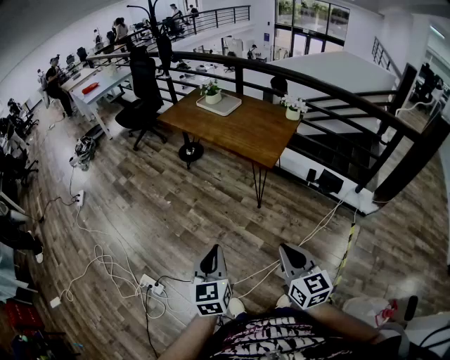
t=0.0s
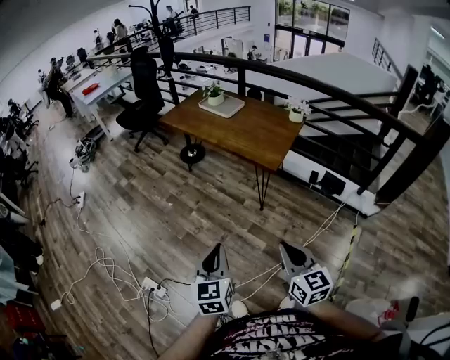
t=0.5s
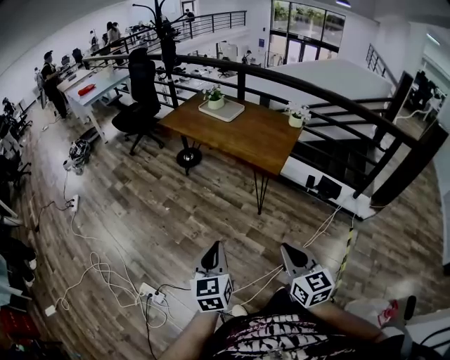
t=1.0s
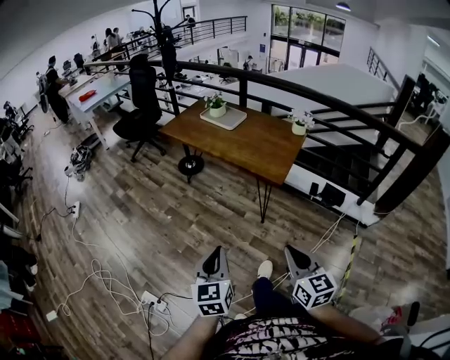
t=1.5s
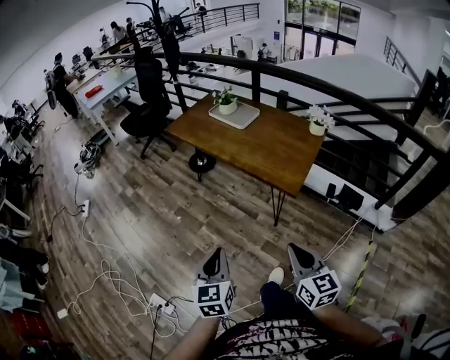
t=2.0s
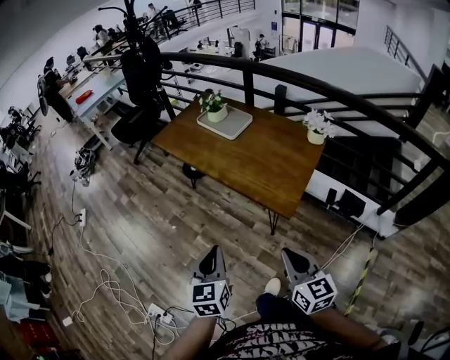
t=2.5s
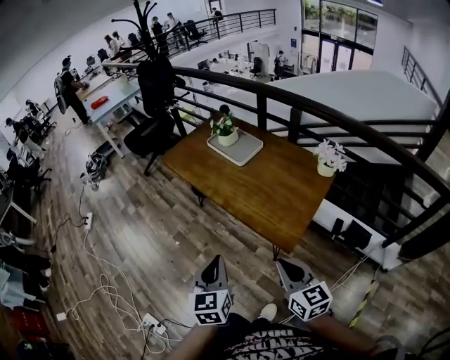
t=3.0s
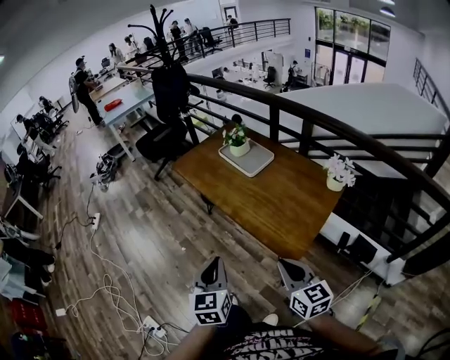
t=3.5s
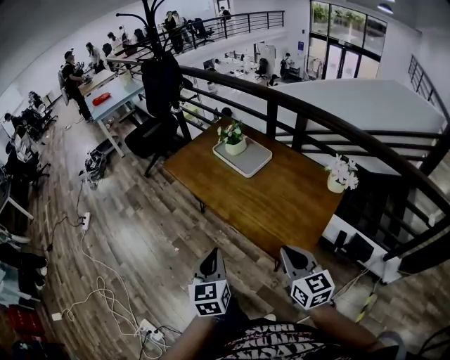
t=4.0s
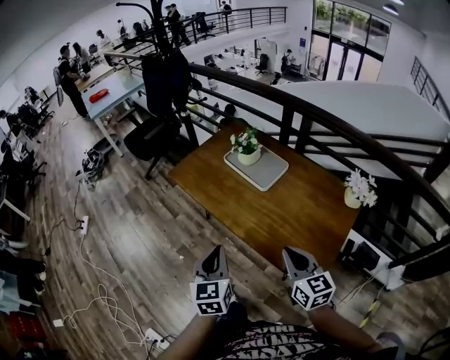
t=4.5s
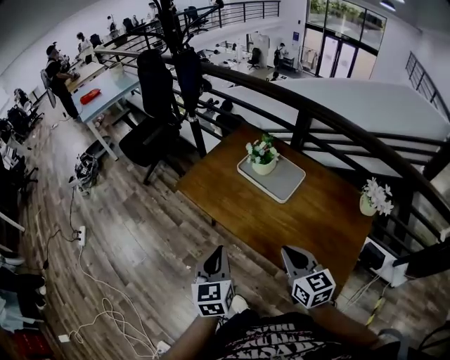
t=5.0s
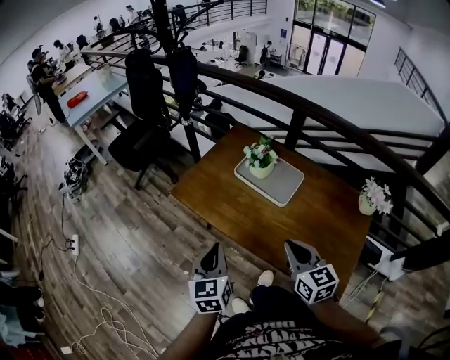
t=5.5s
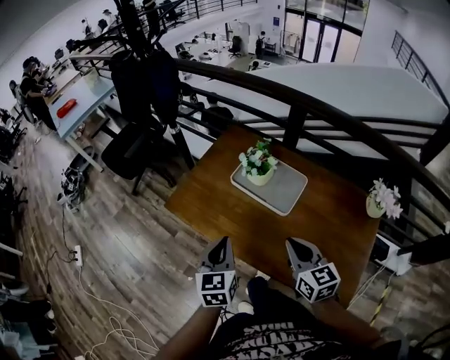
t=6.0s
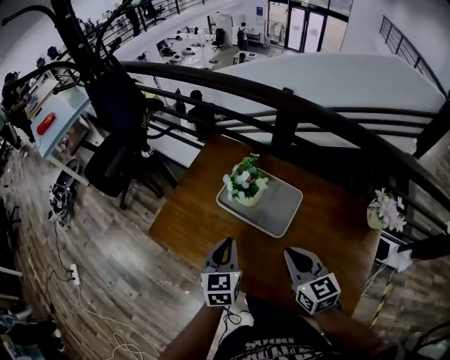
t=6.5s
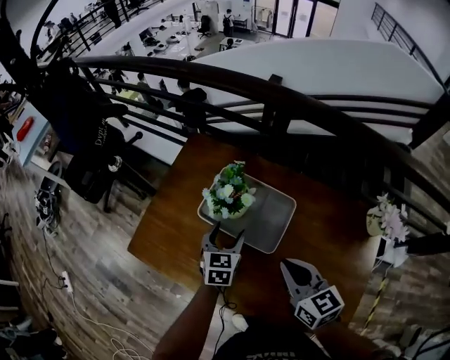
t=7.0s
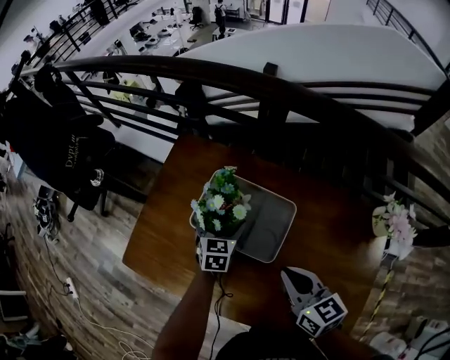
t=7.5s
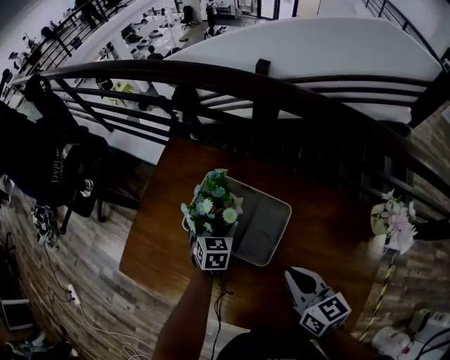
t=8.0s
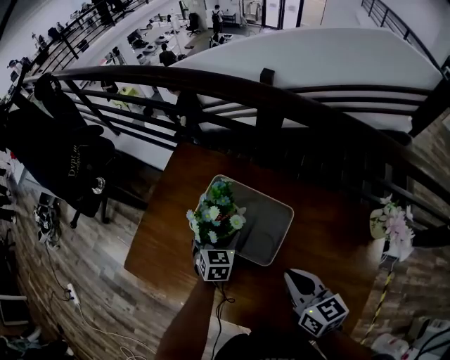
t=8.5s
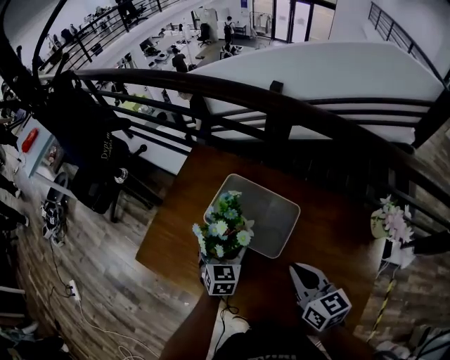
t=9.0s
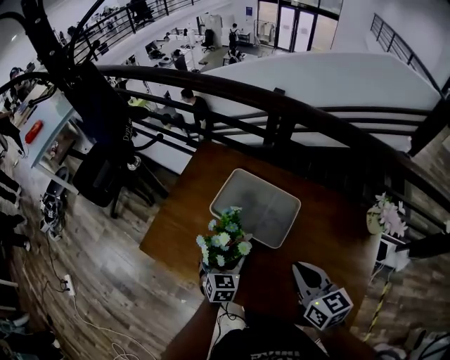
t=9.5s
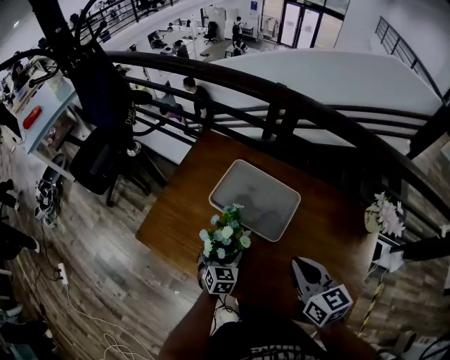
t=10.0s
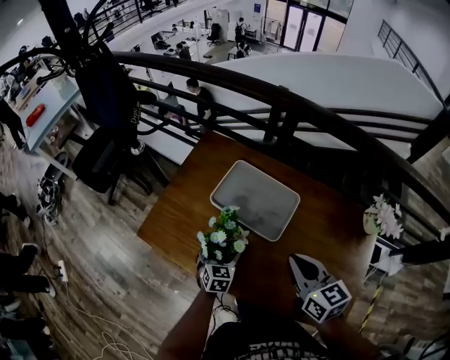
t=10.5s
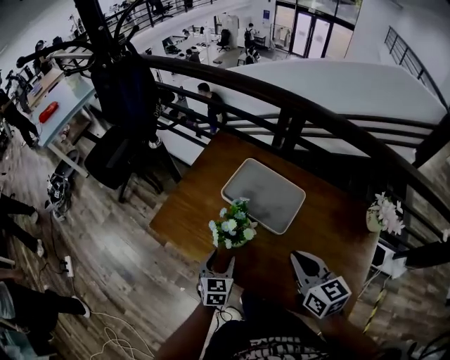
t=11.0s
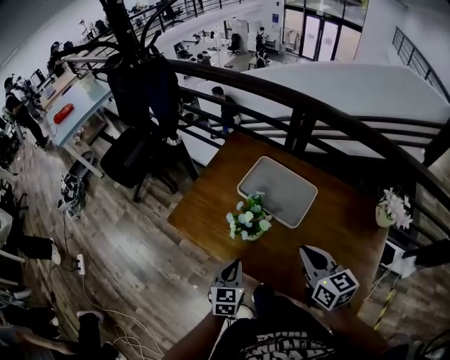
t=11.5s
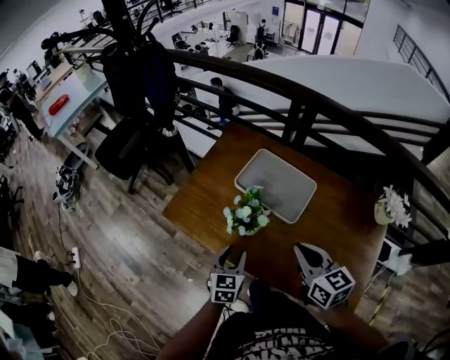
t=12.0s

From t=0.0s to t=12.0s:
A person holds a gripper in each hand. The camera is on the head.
From t=0.0s to t=2.0s: Both grippers move forward, approximately 20 cm.
From t=2.0s to t=4.0s: The grippers both shift forward by approximately 35 cm.
From t=4.0s to t=6.0s: The right gripper heads forward and to the left, covering about 40 cm; the left gripper is displaced forward by about 40 cm.
From t=6.0s to t=8.0s: The left gripper is displaced forward and downward by roughly 40 cm, changes its angle by about 30 degrees, and opens its fingers; the right gripper heads forward, to the right and downward, covering approximately 20 cm.
From t=8.0s to t=10.0s: The left gripper goes roughly 20 cm backward and to the left. Meanwhile the right gripper shifts some 10 cm backward, upward and to the left.
From t=10.0s to t=12.0s: The left gripper moves backward and upward, about 15 cm, and closes its fingers. The right gripper shifts some 5 cm to the left.

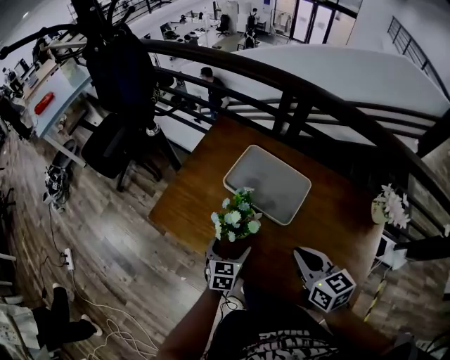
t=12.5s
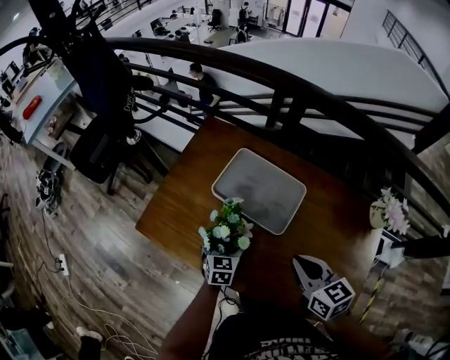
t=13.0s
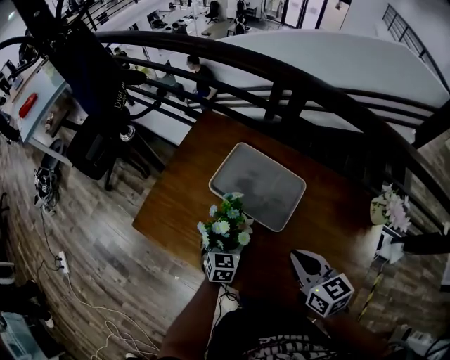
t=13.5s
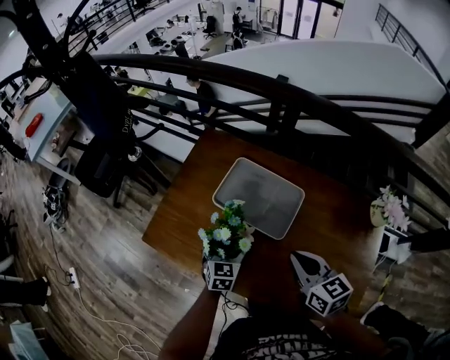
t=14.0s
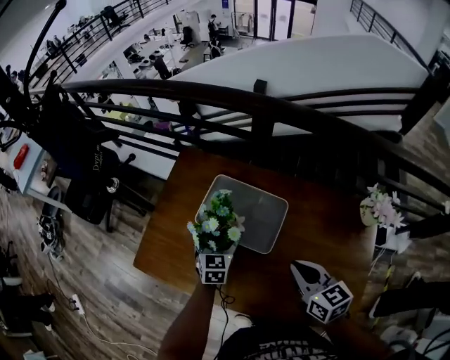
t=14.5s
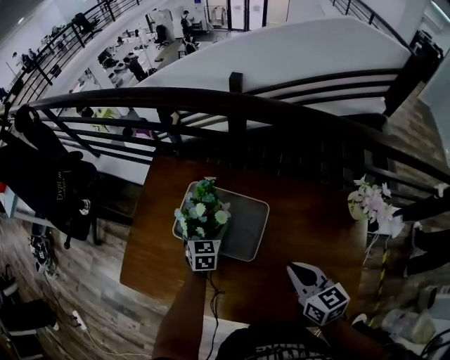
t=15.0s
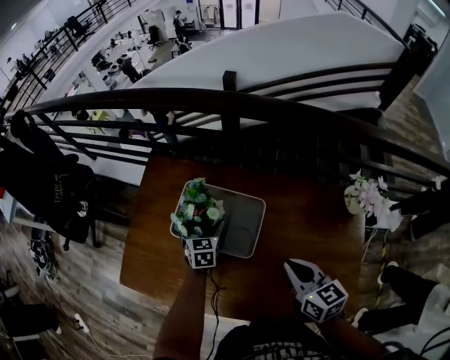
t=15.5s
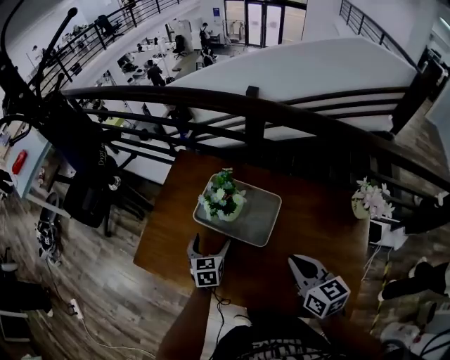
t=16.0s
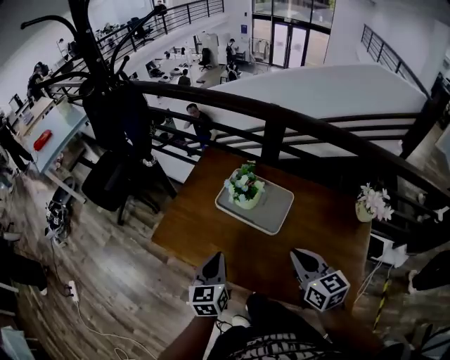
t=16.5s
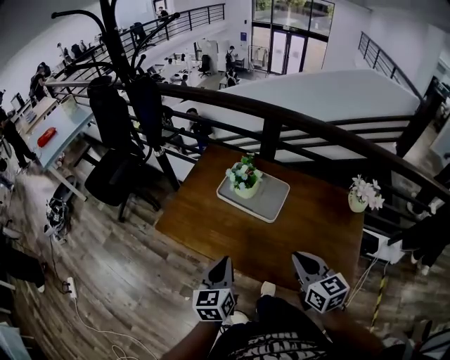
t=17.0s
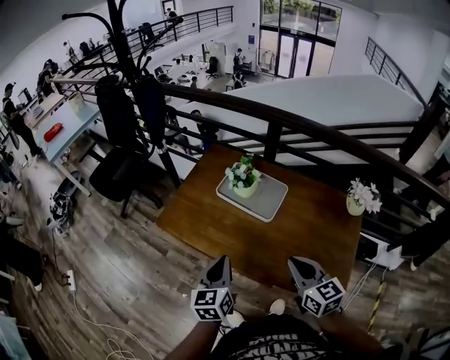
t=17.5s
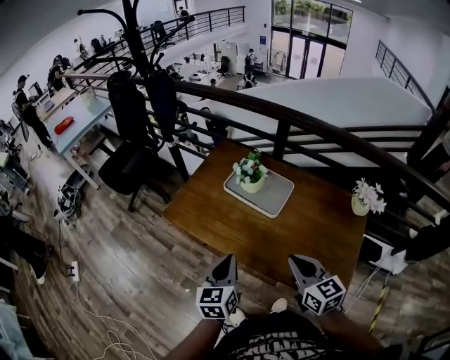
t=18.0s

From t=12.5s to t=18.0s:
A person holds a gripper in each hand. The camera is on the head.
From t=12.5s to t=14.5s: The right gripper goes about 10 cm to the right and forward, while the left gripper goes about 15 cm forward.
From t=14.5s to t=16.0s: The left gripper goes forward and returns, some 10 cm each way.
From t=16.0s to t=18.0s: The left gripper moves backward and upward, about 35 cm, swivels approximately 20 degrees, and closes, while the right gripper goes about 20 cm backward.

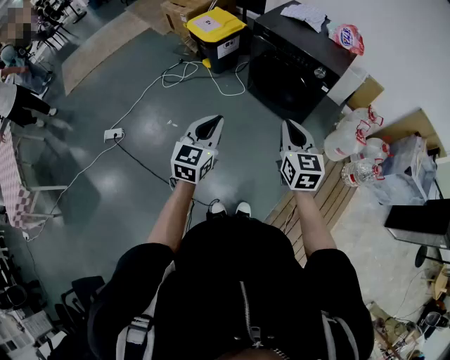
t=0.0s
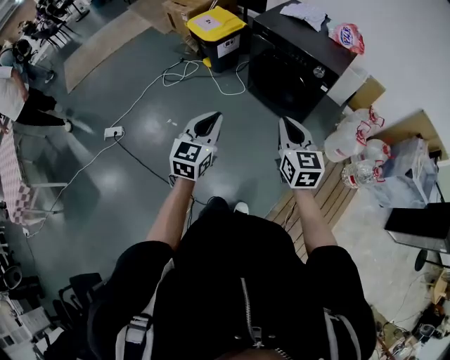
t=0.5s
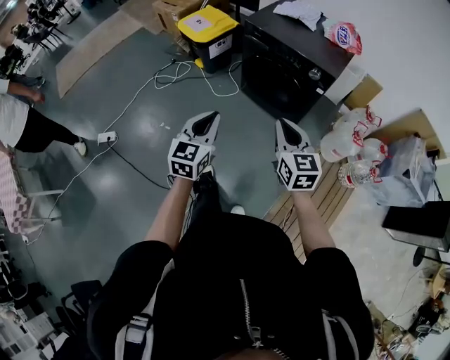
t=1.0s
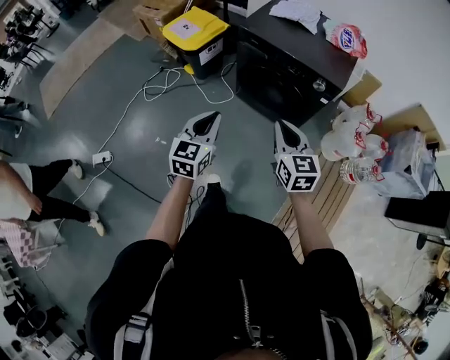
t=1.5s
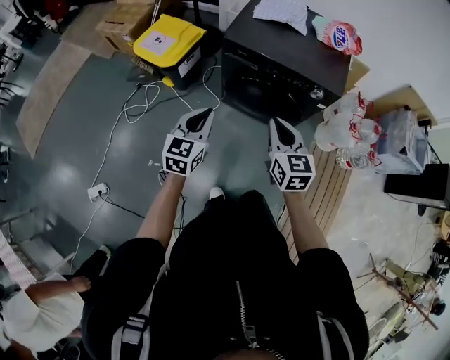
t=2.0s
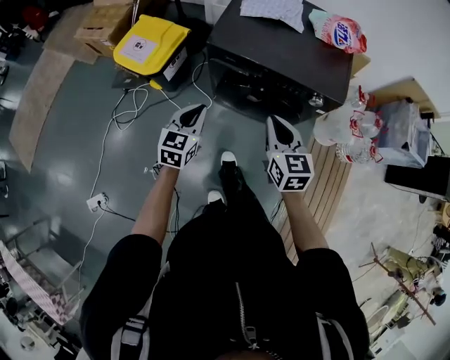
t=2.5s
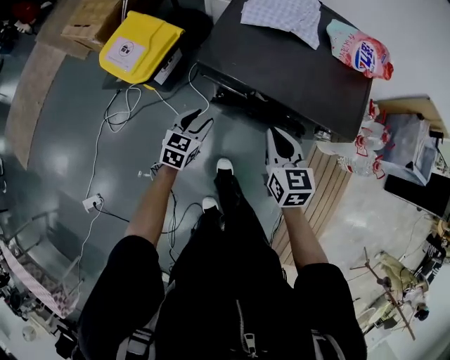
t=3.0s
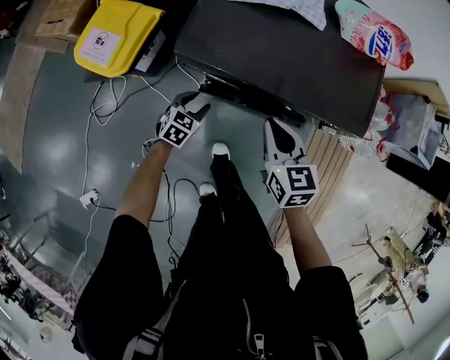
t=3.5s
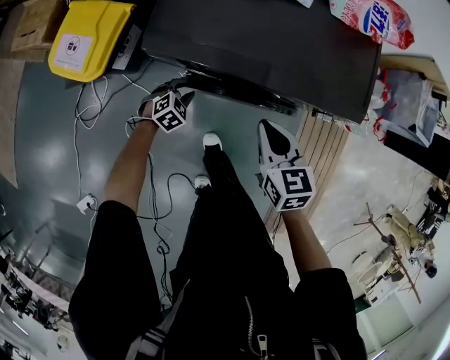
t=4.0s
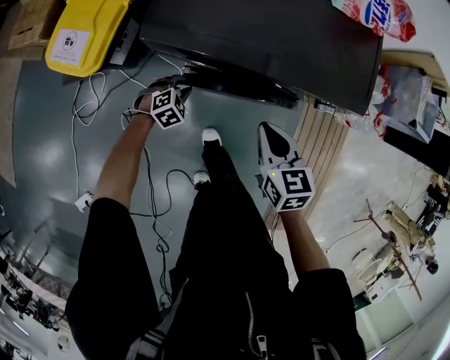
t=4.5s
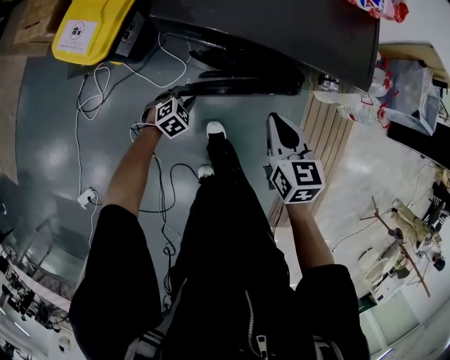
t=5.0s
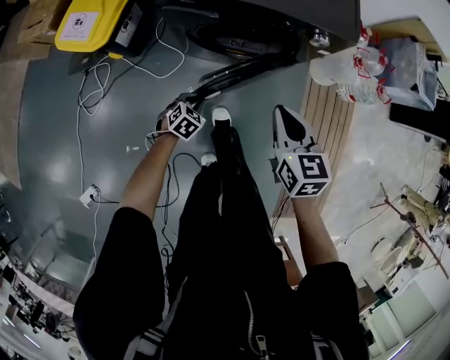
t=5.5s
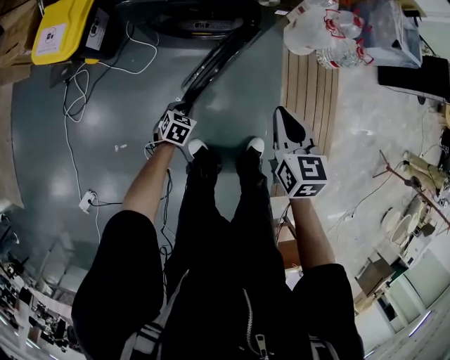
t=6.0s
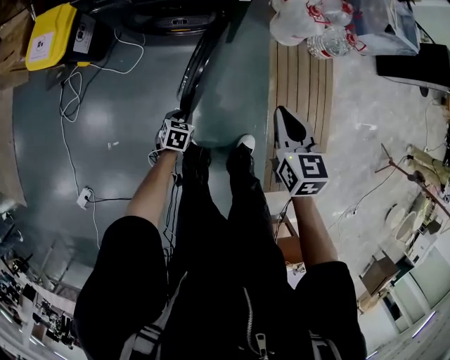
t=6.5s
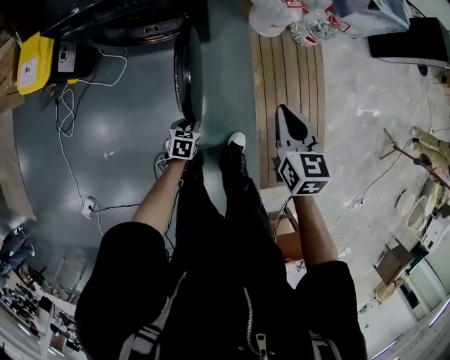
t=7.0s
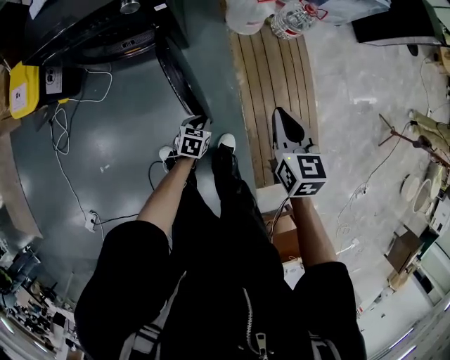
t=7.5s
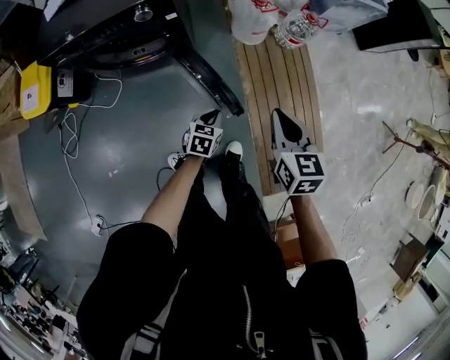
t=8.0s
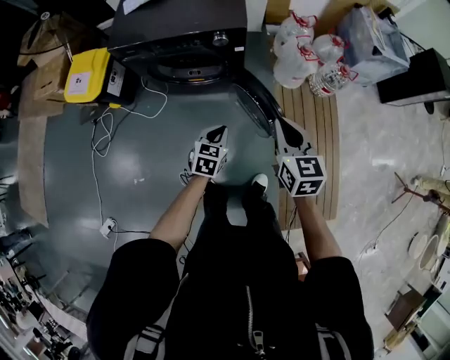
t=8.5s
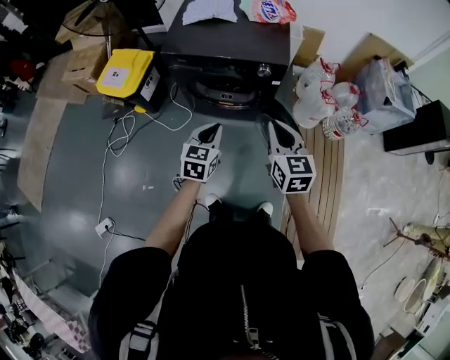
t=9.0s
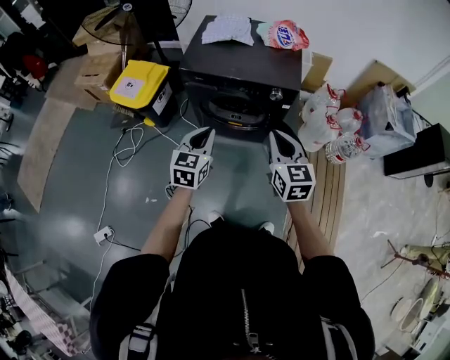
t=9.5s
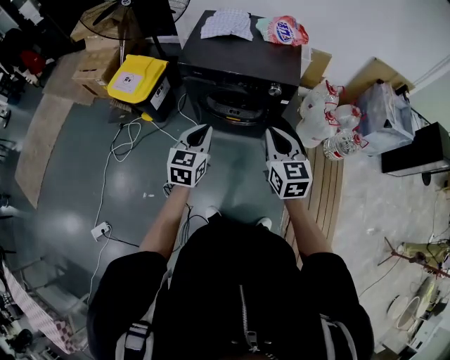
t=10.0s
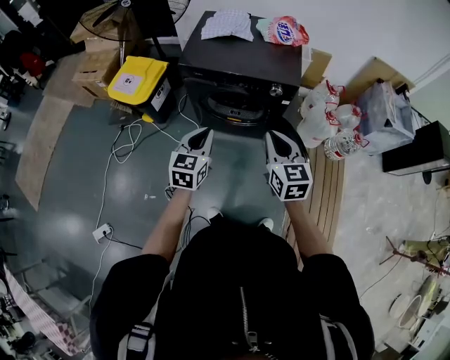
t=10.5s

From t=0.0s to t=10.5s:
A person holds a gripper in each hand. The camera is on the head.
From t=0.0s to t=2.0s: Both grippers move forward, roughly 35 cm.
From t=2.0s to t=4.0s: The right gripper goes some 35 cm forward and downward, and rotates about 20 degrees; the left gripper is displaced downward and forward by roughly 50 cm, angles its fingers downward, by approximately 40 degrees, and opens up.
From t=4.0s to t=6.5s: The pair of grippers is taken to the right and backward, about 50 cm. The left gripper changes its angle by about 30 degrees.
From t=6.5s to t=8.5s: The left gripper is displaced upward, to the right and forward by roughly 25 cm, and turns by roughly 20 degrees, while the right gripper travels upward by about 10 cm, and moves about 20 cm to the right and comes back.
From t=8.5s to t=10.5s: Both grippers move to the left and upward, about 25 cm. The left gripper rotates roughly 30 degrees.
